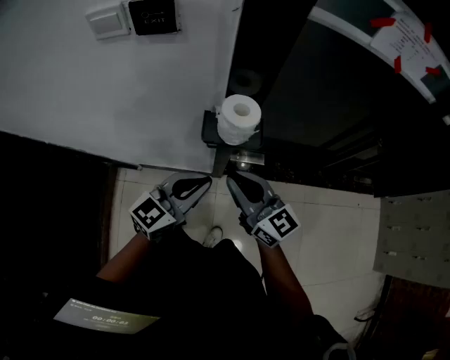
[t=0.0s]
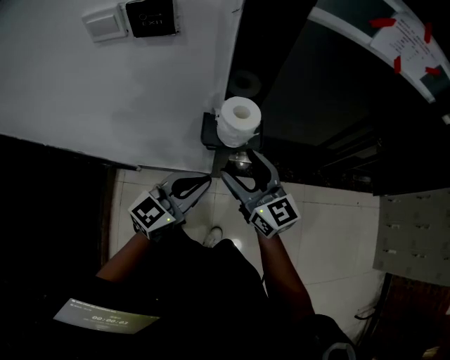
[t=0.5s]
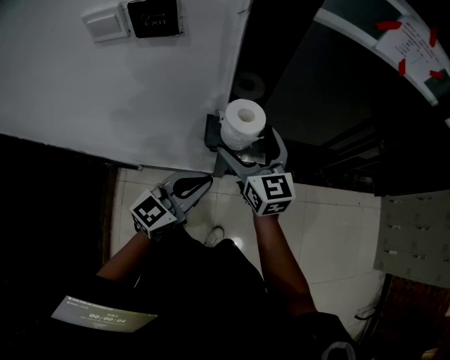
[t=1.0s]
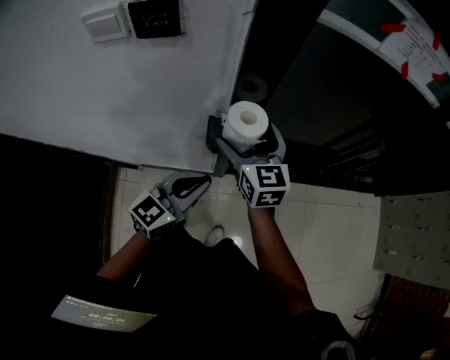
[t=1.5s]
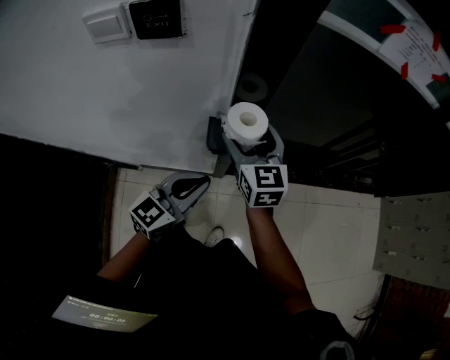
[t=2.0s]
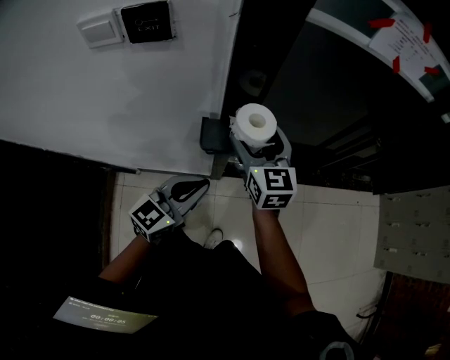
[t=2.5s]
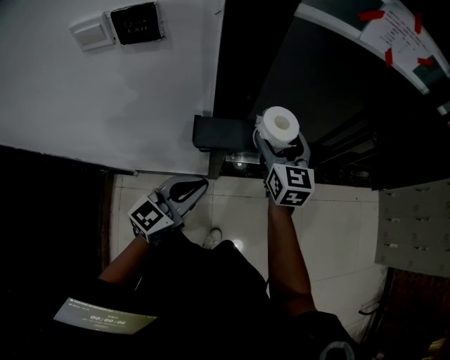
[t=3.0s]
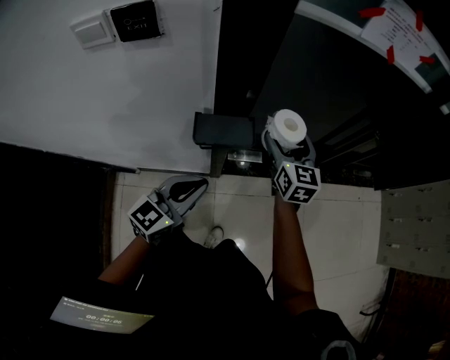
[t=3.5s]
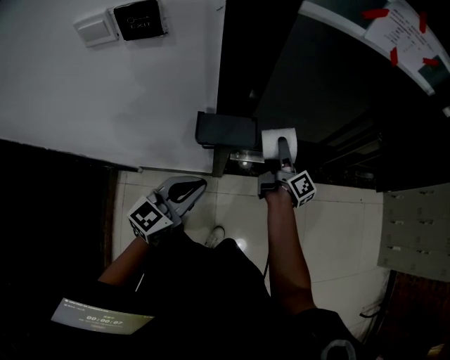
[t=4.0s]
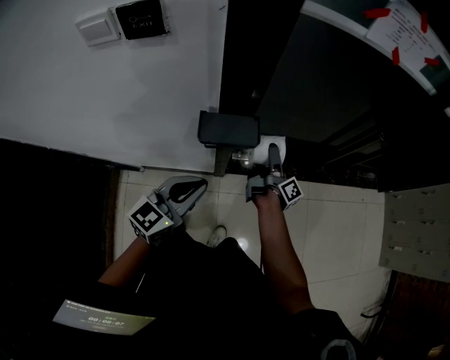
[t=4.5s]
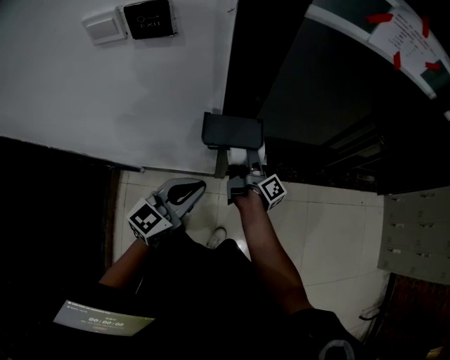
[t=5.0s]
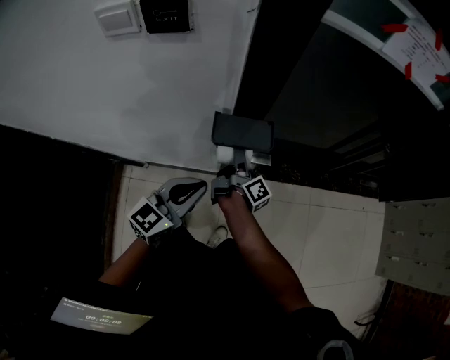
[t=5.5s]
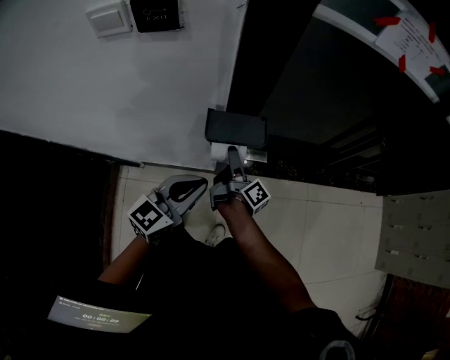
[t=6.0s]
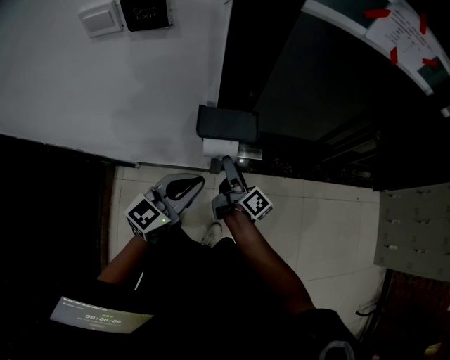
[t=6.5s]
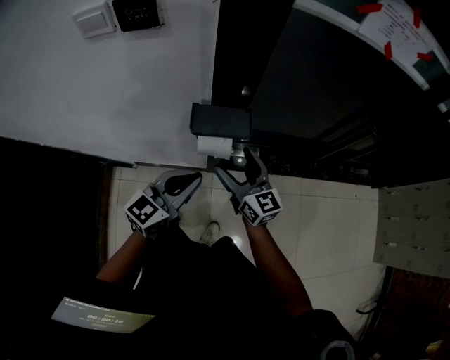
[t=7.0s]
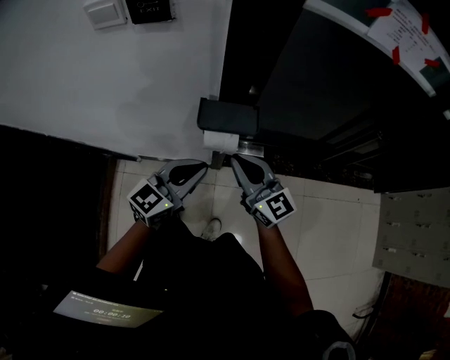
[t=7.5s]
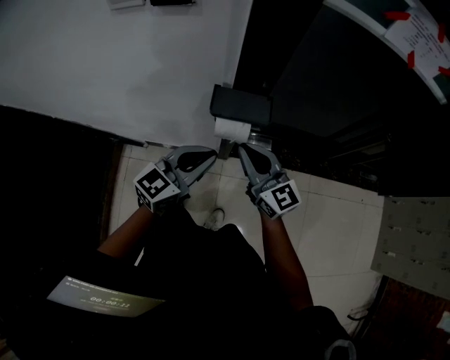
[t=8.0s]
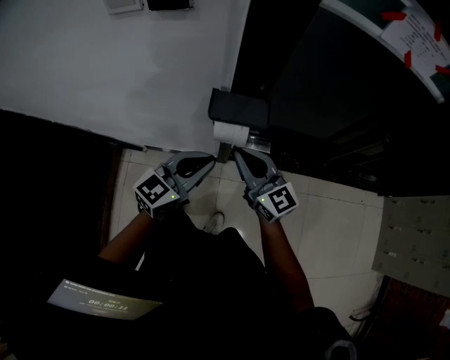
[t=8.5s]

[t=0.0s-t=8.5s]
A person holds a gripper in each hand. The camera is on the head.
t=0.0s to t=2.0s: The right gripper moves forward, some 15 cm, rotates roughly 30 degrees, and opens its fingers.
t=2.0s to t=4.0s: The right gripper heads to the right and downward, covering approximately 20 cm, and rolls clockwise, seen from behind, by some 70 degrees.
t=4.0s to t=6.5s: The right gripper moves to the left and backward, about 20 cm.
t=6.5s to t=8.5s: The right gripper shifts about 10 cm upward and backward, rotates around the line of its fingers by roughly 60 degrees, counterclockwise from behind, and closes.

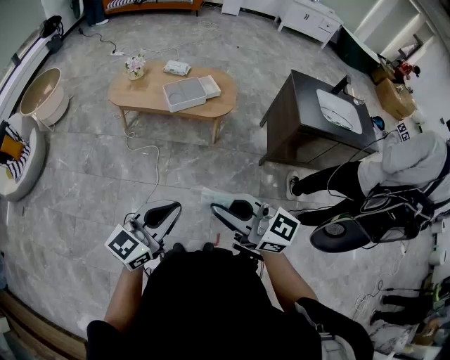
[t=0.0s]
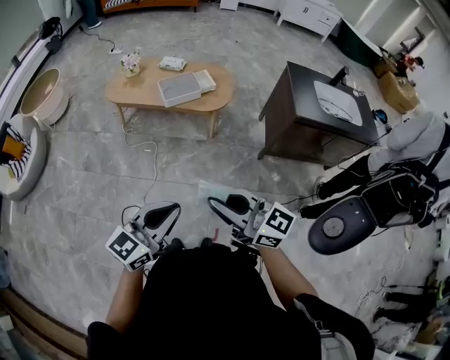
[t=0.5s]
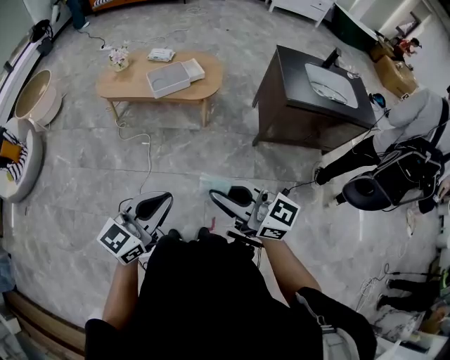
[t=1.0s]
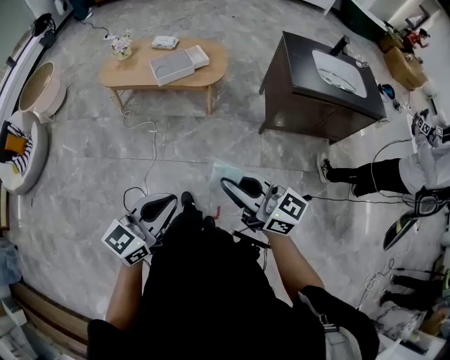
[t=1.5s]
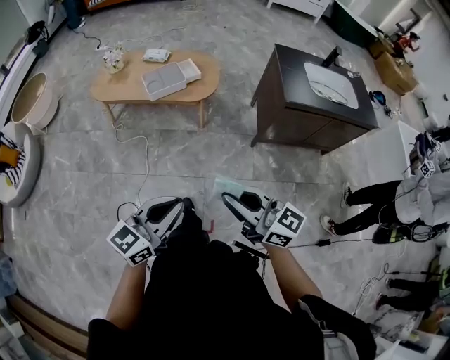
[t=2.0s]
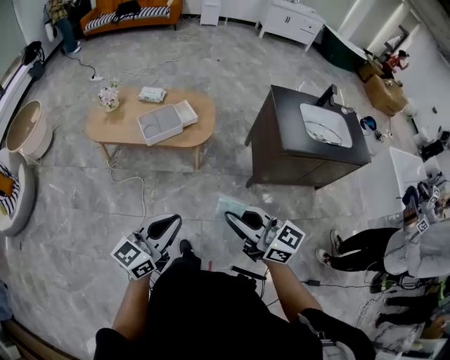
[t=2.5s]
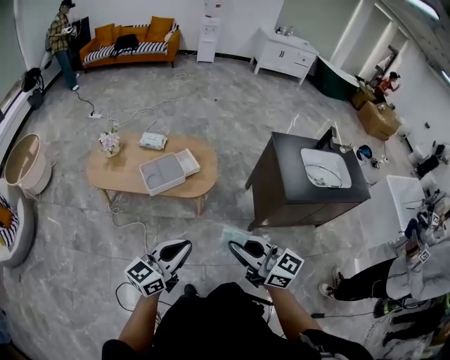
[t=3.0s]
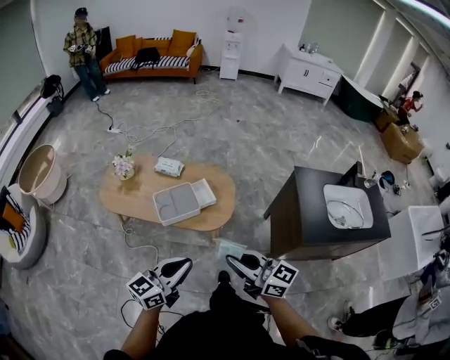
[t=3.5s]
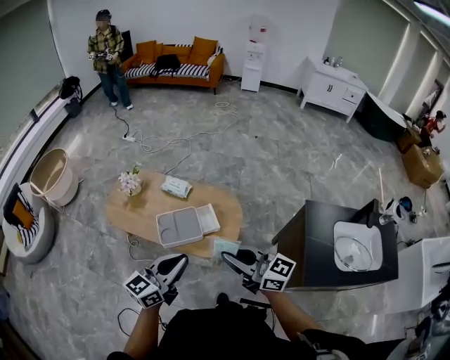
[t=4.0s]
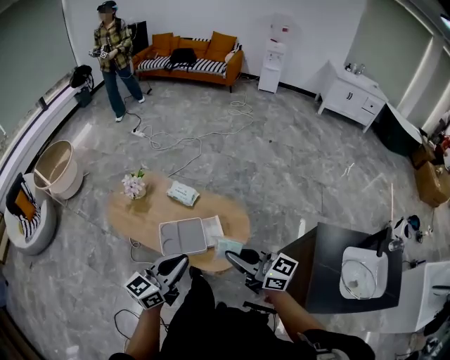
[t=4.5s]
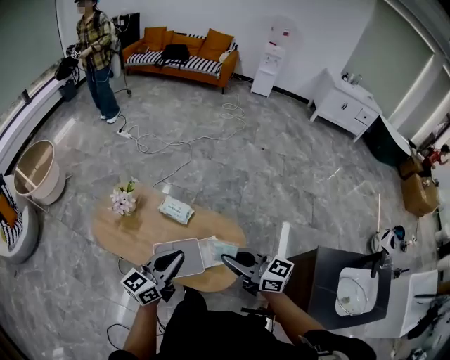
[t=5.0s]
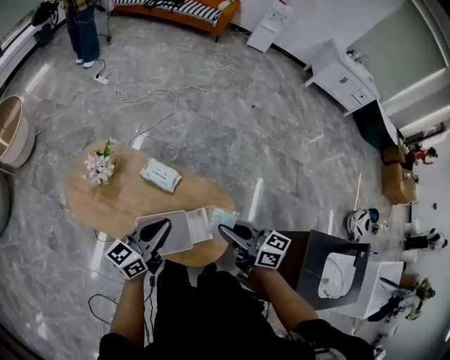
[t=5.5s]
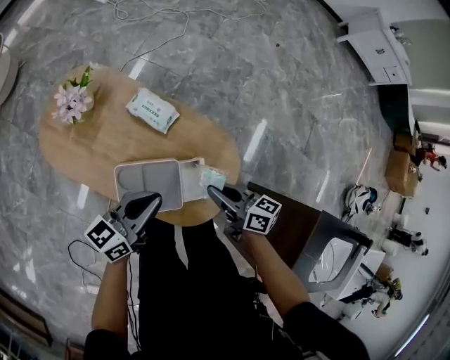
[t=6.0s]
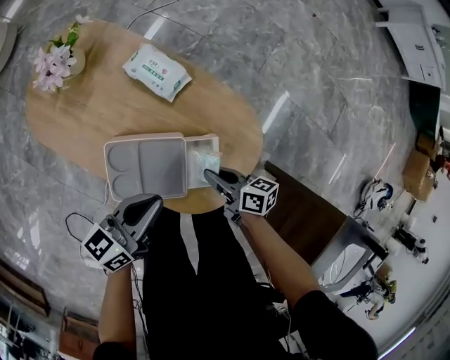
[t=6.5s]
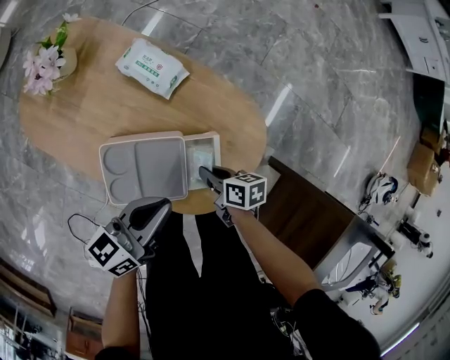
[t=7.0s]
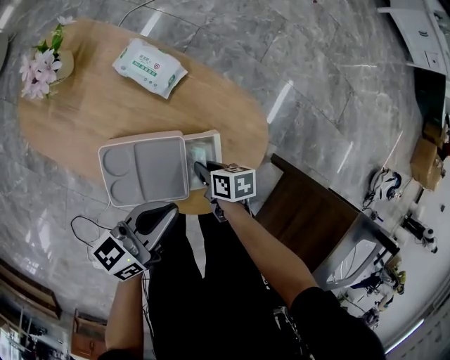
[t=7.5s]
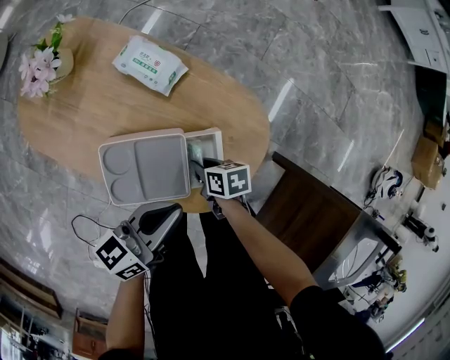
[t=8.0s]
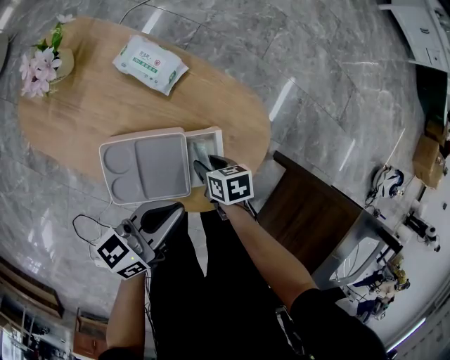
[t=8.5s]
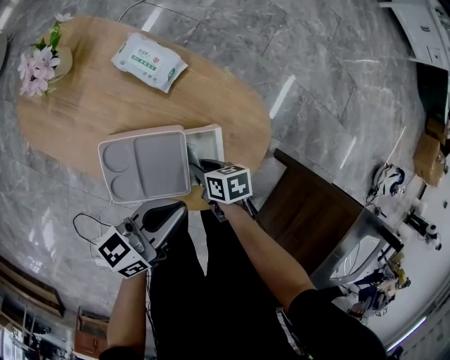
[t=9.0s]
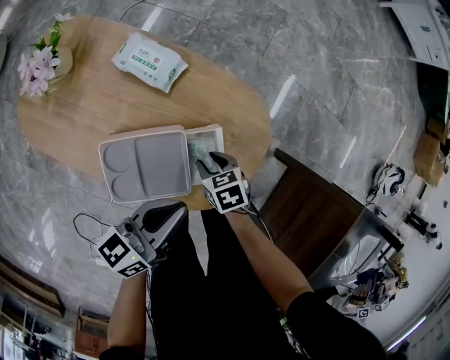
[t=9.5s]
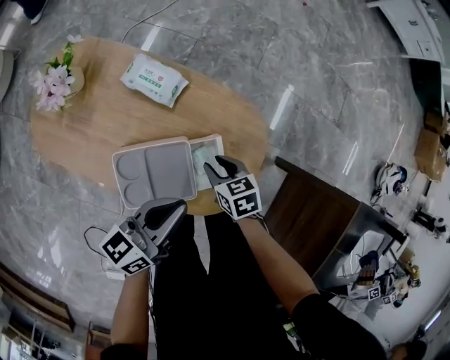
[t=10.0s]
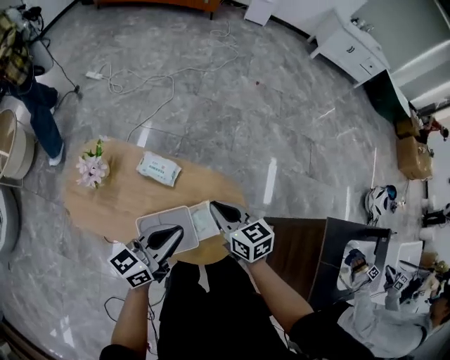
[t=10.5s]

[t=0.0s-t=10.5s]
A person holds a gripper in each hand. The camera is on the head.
t=0.0s to t=2.0s: The two grippers go about 15 cm to the right.
t=2.0s to t=4.0s: The two grippers travel together, forward, some 60 cm.
t=4.0s to t=6.5s: Both grippers move downward and forward, some 60 cm. The left gripper turns by roughly 30 degrees. Meanwhile the right gripper angles its fingers downward, by about 30 degrees.
t=6.5s to t=8.5s: The left gripper ends up approximately 5 cm from where it was. The right gripper goes roughly 10 cm downward, tilts its fingers about 30 degrees downward, and opens.
t=8.5s to t=10.5s: The left gripper goes approximately 20 cm upward, and changes its angle by roughly 20 degrees. The right gripper travels upward by some 35 cm, points its fingers about 30 degrees further upward, and closes its fingers.

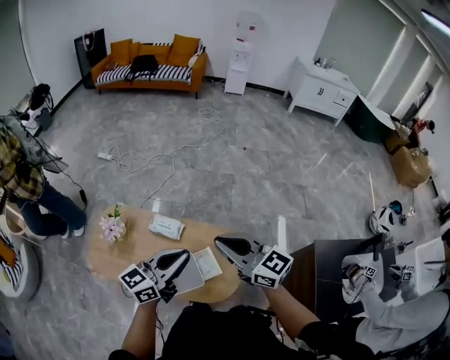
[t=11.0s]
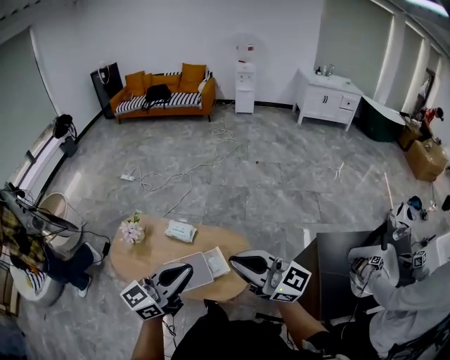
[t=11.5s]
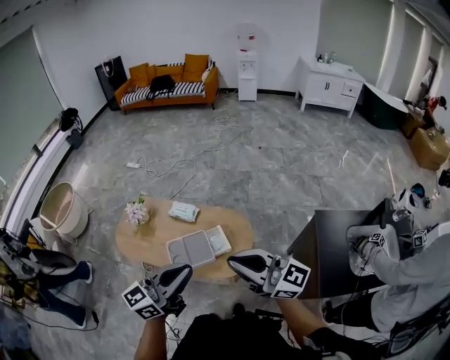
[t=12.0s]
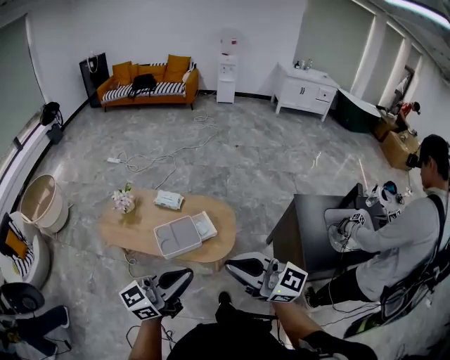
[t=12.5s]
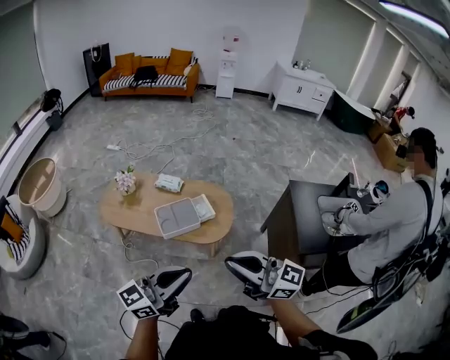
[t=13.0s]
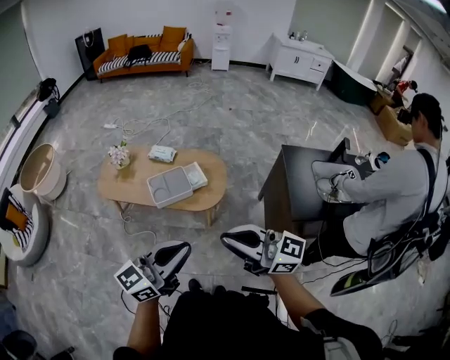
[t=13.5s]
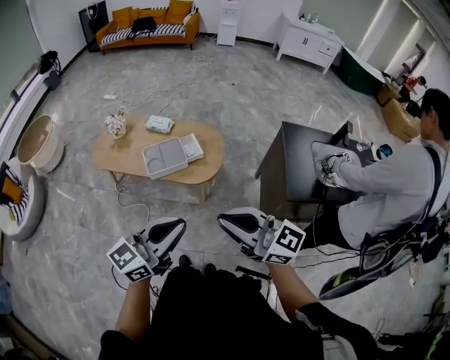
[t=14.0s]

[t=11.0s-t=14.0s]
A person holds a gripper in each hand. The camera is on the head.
t=11.0s to t=12.5s: The two grippers travel together, backward, about 40 cm.
t=12.5s to t=14.0s: The two grippers go approximately 20 cm backward.

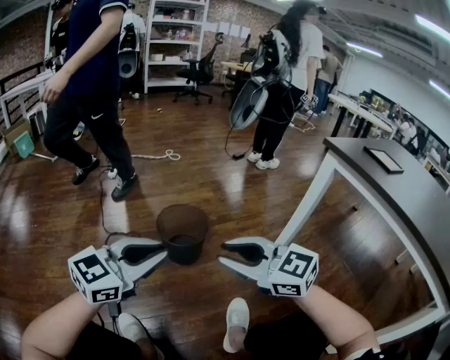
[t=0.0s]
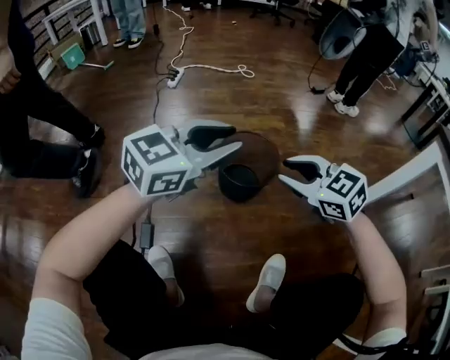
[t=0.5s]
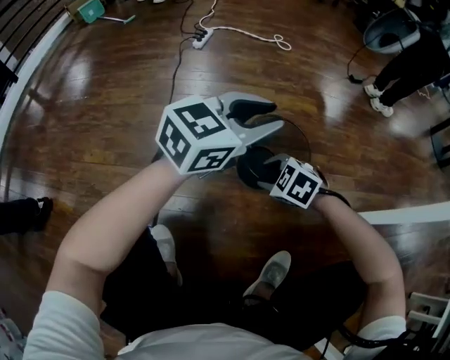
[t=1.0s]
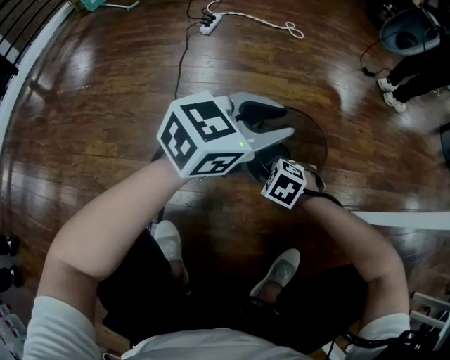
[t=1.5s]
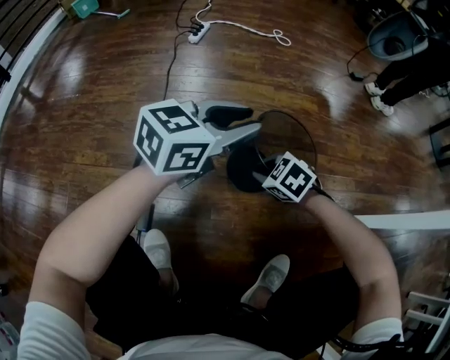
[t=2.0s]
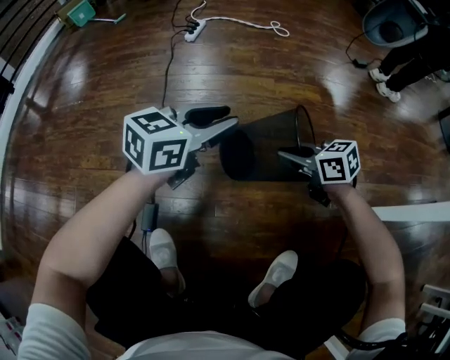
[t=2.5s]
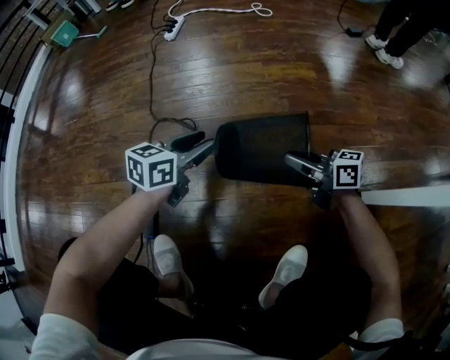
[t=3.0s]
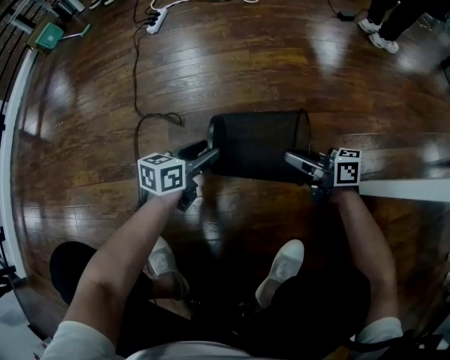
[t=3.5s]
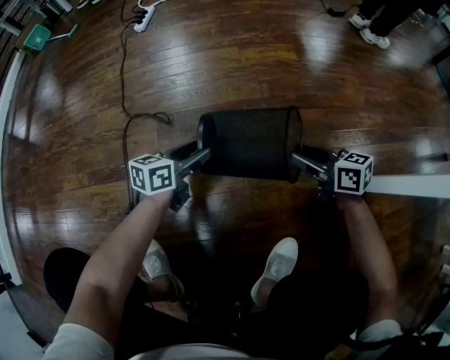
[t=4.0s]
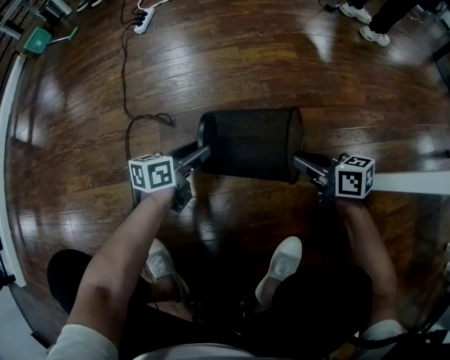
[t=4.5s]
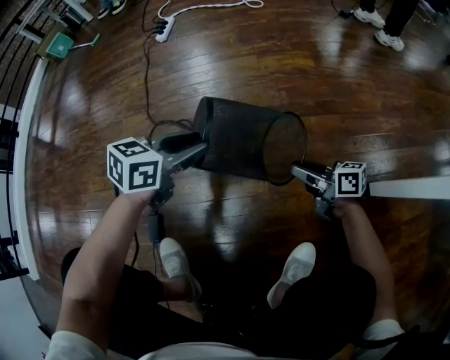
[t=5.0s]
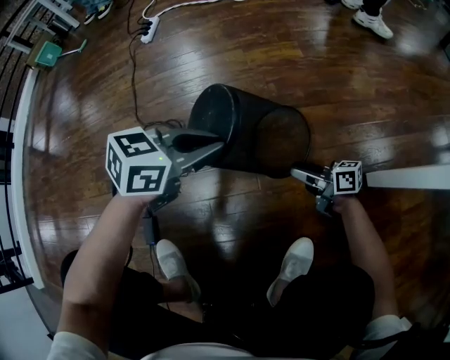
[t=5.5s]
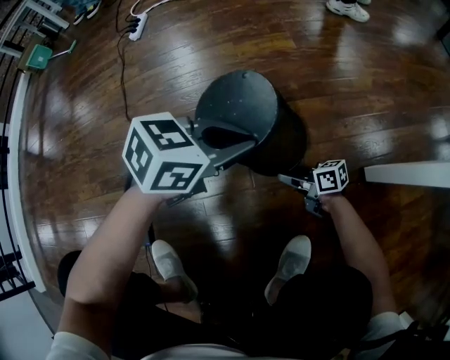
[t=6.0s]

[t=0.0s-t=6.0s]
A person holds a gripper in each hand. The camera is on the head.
t=0.0s to t=2.0s: The left gripper ends up about 25 cm from where it was; the right gripper is displaced downward by about 30 cm, and tilts its fingers roughly 50 degrees downward.
t=2.0s to t=4.0s: The left gripper travels downward by about 25 cm, turns by roughly 30 degrees, and opens its fingers. The right gripper moves to the right, some 20 cm, tips its fingers upward by approximately 40 degrees, and opens its fingers.
t=4.0s to t=6.0s: The left gripper travels upward by roughly 15 cm, rotates approximately 40 degrees, and closes its fingers; the right gripper moves downward, about 15 cm.
